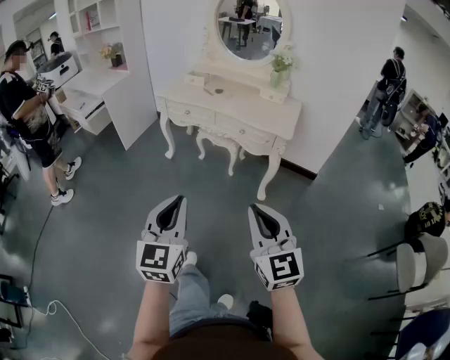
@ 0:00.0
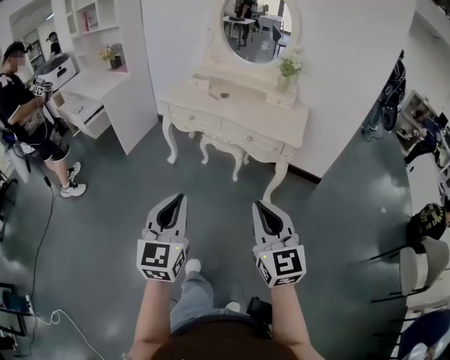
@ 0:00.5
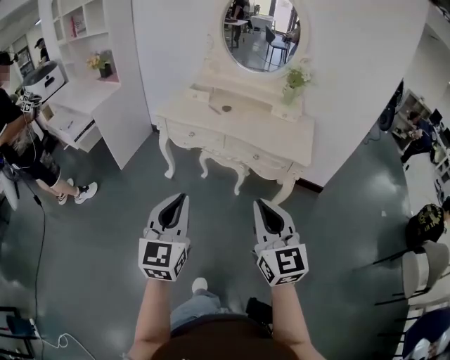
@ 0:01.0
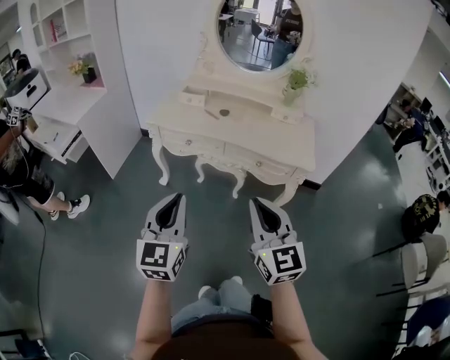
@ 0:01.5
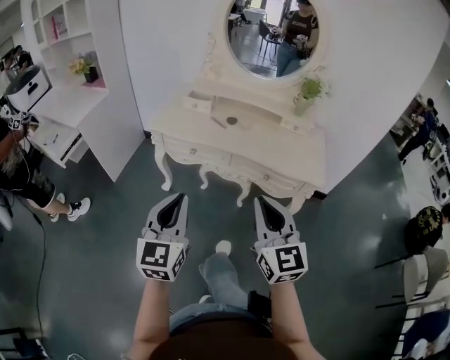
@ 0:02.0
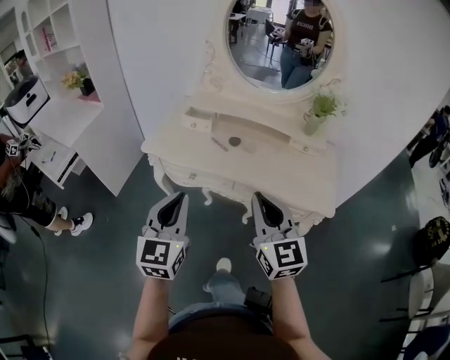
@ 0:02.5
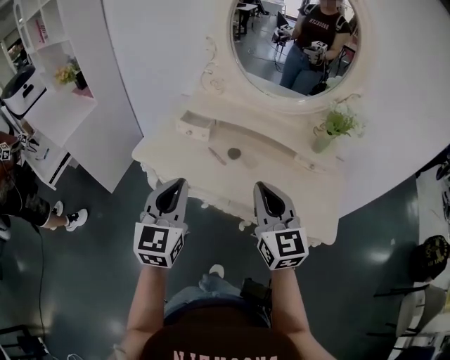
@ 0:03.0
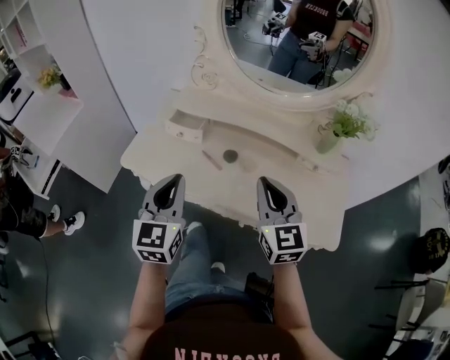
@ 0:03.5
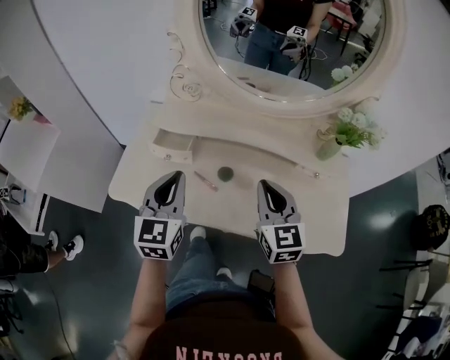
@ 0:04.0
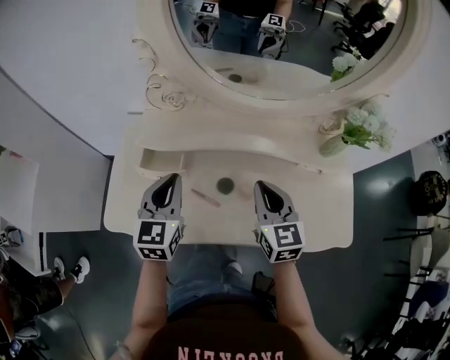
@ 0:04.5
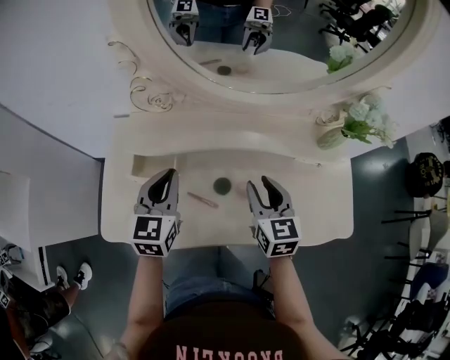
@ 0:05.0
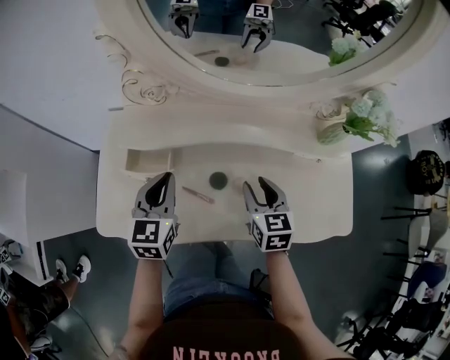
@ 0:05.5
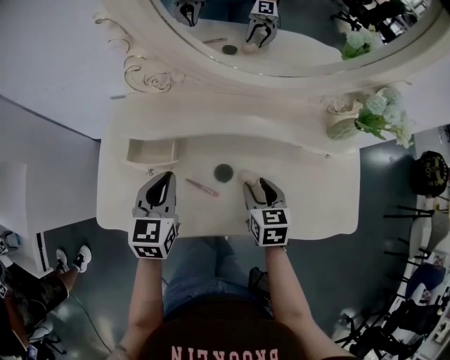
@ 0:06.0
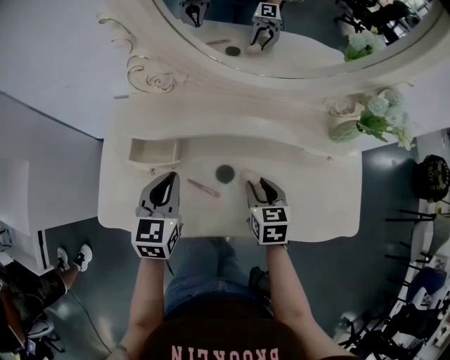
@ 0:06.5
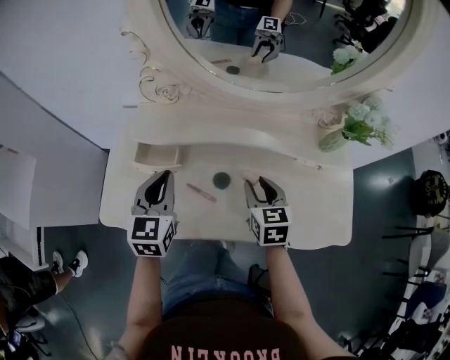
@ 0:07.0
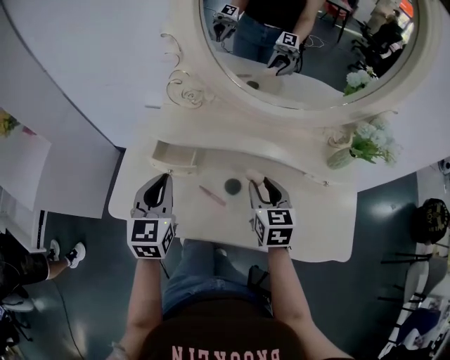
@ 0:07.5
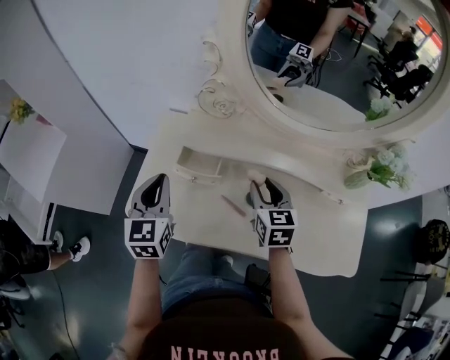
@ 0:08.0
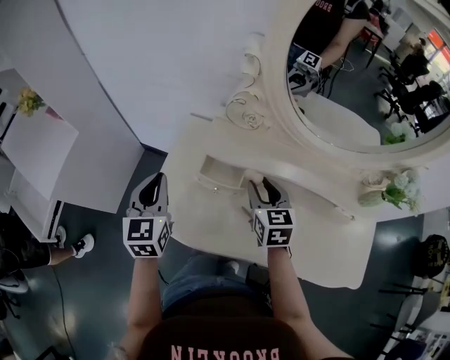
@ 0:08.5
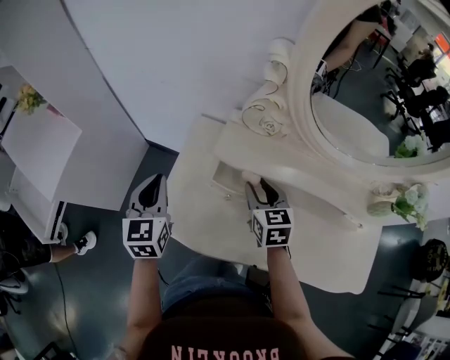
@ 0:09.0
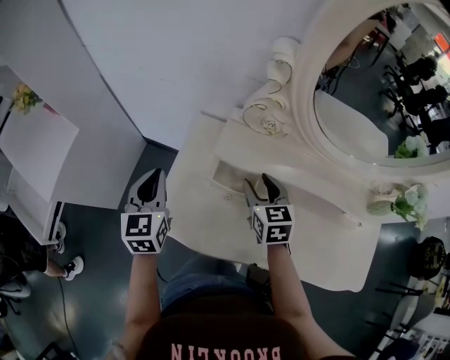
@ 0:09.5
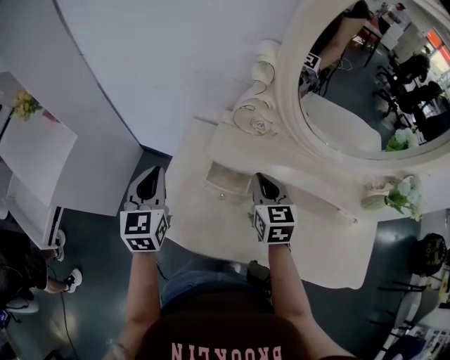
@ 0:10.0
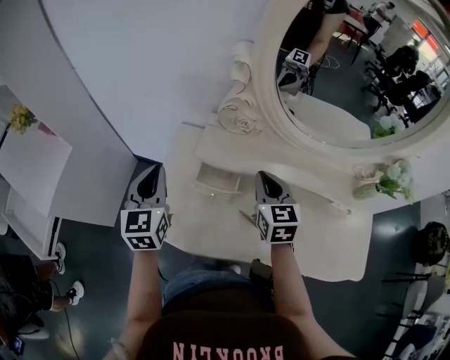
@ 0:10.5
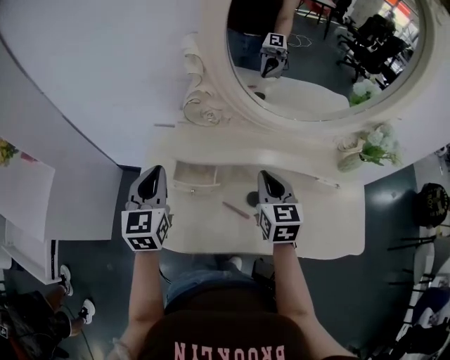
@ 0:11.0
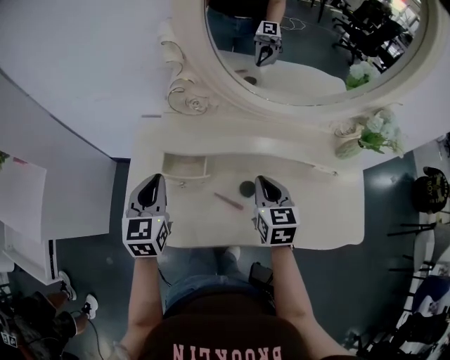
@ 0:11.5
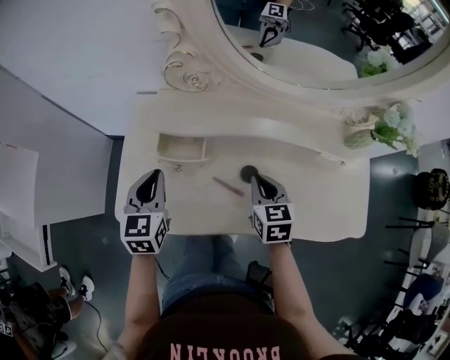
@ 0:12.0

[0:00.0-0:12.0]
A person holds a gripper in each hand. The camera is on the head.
0:00.0 to 0:02.0: The two grippers travel together, forward and to the left, some 40 cm.
0:02.0 to 0:04.0: The pair of grippers is taken forward, roughly 50 cm.
0:04.0 to 0:06.0: The right gripper is displaced downward by approximately 20 cm, swivels approximately 30 degrees, and opens up. The left gripper shifts roughly 15 cm downward and forward.
0:06.0 to 0:08.0: The right gripper travels upward, to the left and forward by approximately 15 cm. Meanwhile the left gripper is displaced to the left and upward by approximately 15 cm, and changes its angle by some 20 degrees.
0:08.0 to 0:10.0: Both grippers move to the left and forward, approximately 15 cm. The right gripper closes up.
0:10.0 to 0:12.0: The left gripper goes approximately 15 cm to the right and downward; the right gripper moves to the right, backward and downward, some 20 cm.

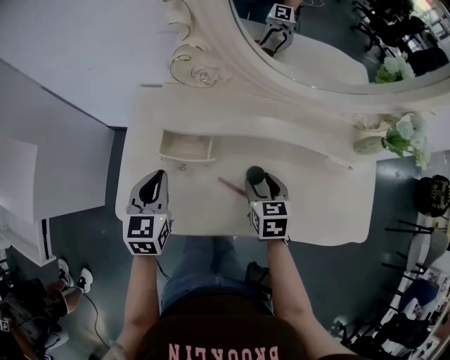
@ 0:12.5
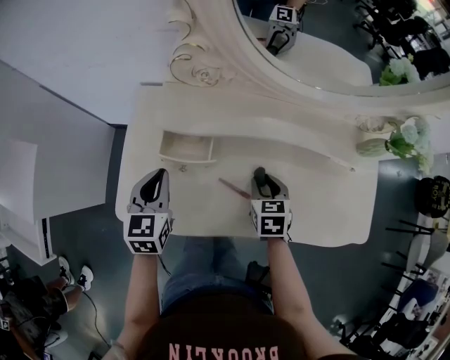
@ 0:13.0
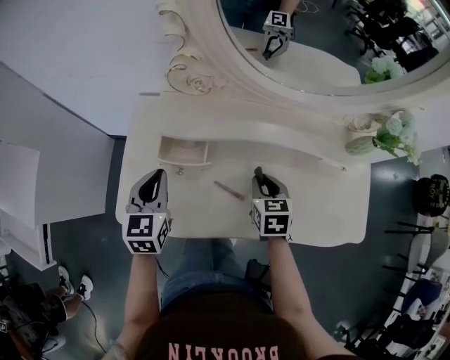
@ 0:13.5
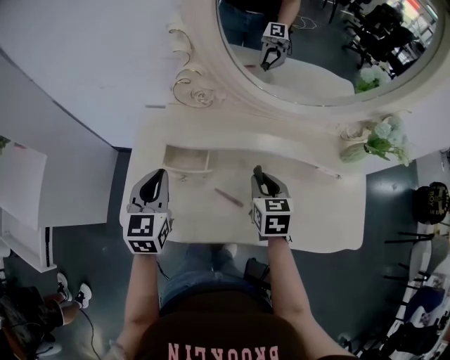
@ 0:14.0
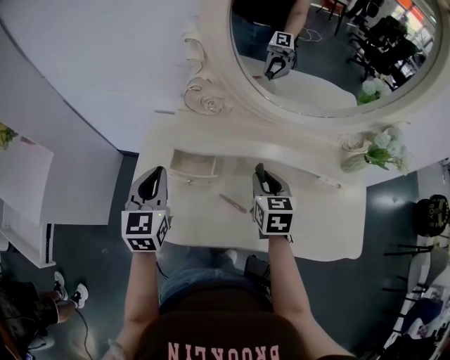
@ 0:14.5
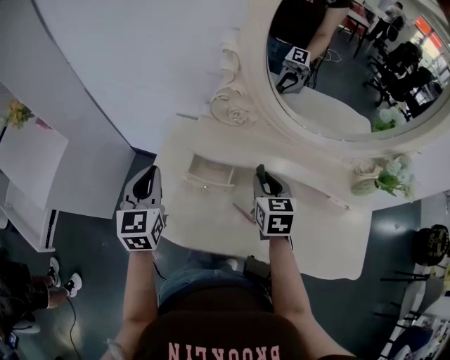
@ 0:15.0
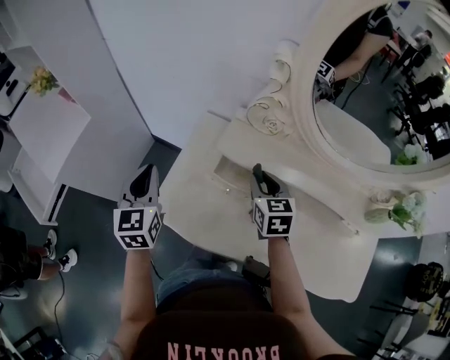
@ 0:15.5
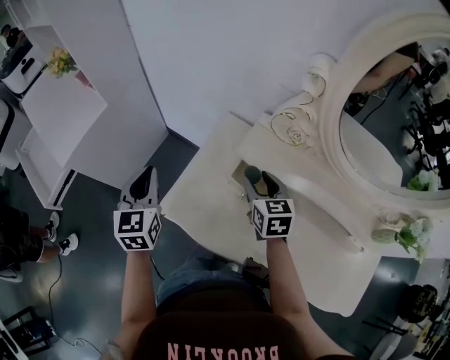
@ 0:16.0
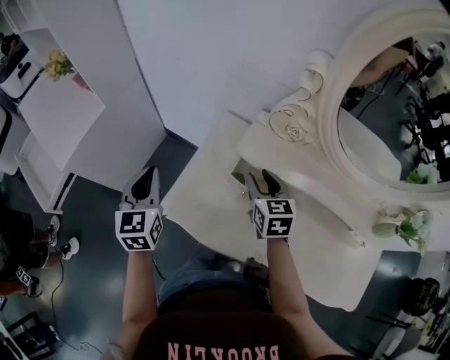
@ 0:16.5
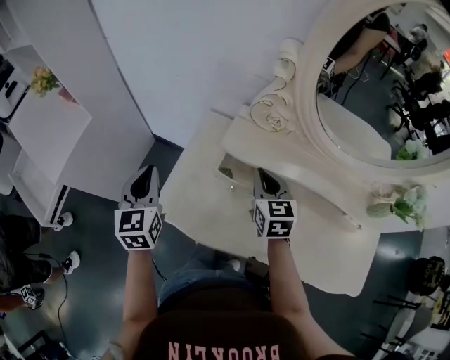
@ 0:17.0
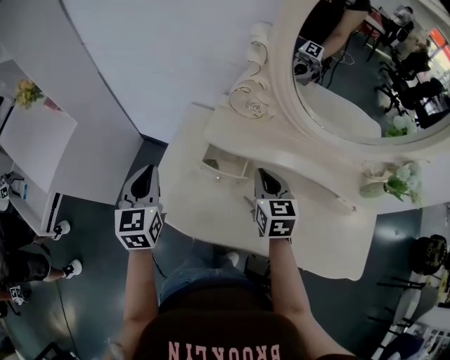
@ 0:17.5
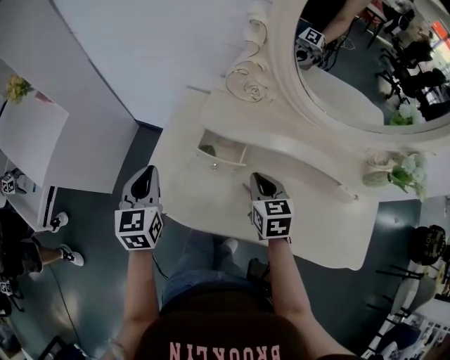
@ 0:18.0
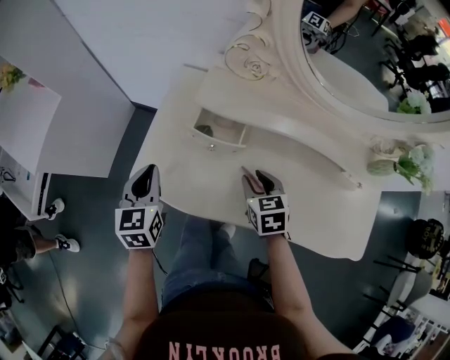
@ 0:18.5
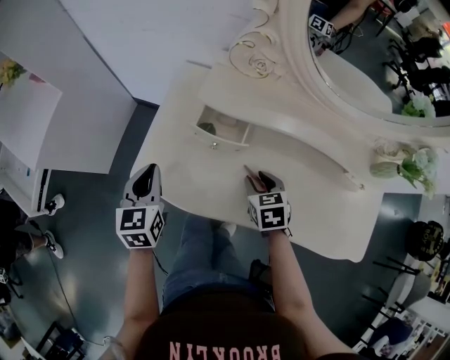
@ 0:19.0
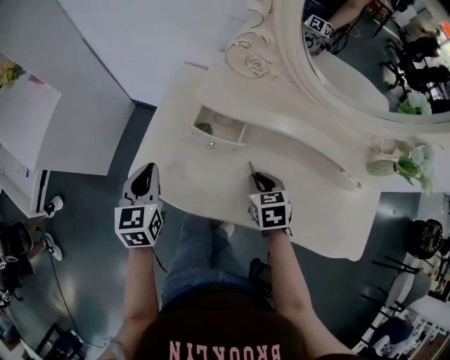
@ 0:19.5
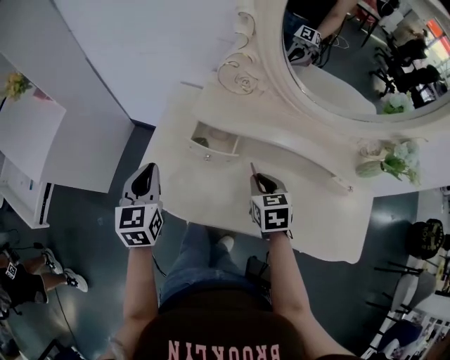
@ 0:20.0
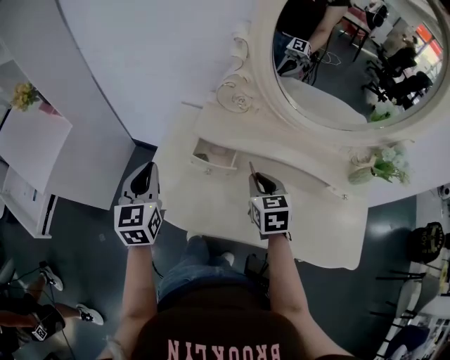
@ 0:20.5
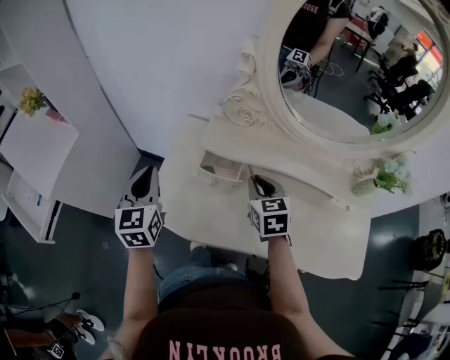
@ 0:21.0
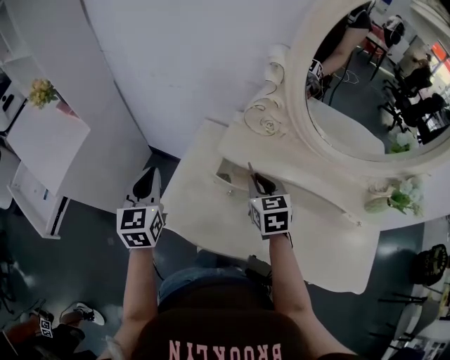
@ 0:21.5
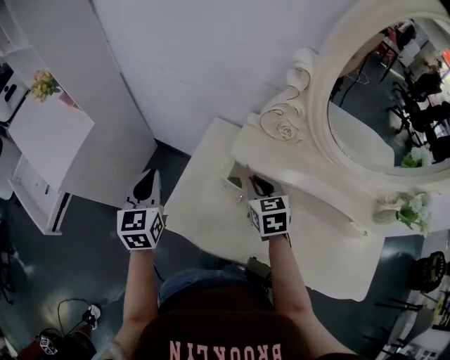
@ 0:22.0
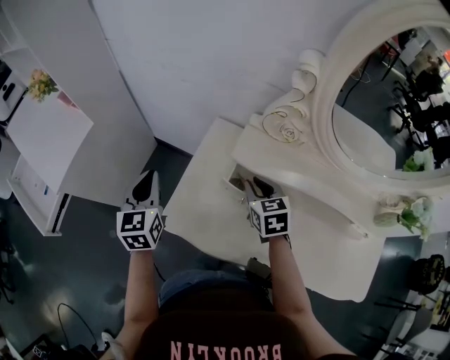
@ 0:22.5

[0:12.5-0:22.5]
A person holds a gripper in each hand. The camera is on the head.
0:12.5 to 0:14.5: Both grippers move upward, about 10 cm. The right gripper closes its fingers.
0:14.5 to 0:16.5: The left gripper moves some 20 cm, and rotates about 20 degrees, while the right gripper shifts by some 20 cm, and swivels roughly 20 degrees.
0:16.5 to 0:18.5: The right gripper heads backward, downward and to the right, covering roughly 20 cm, and closes and opens again, while the left gripper moves to the right, downward and backward, about 15 cm.
0:18.5 to 0:20.5: The grippers both shift upward by about 10 cm. The right gripper closes its fingers.
0:20.5 to 0:22.5: Both grippers travel together to the left and forward, approximately 15 cm.

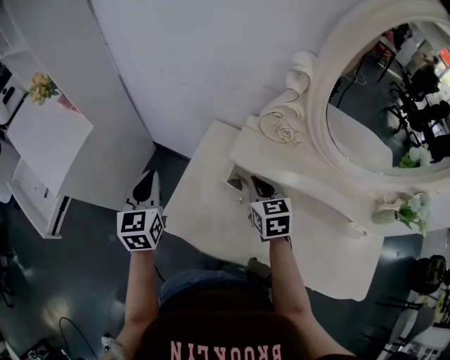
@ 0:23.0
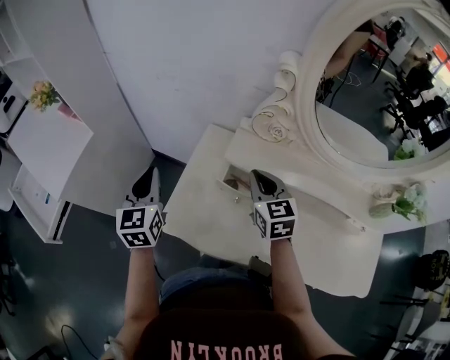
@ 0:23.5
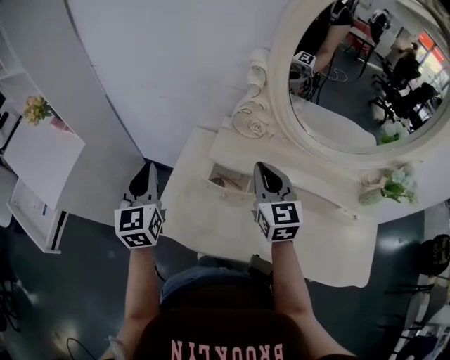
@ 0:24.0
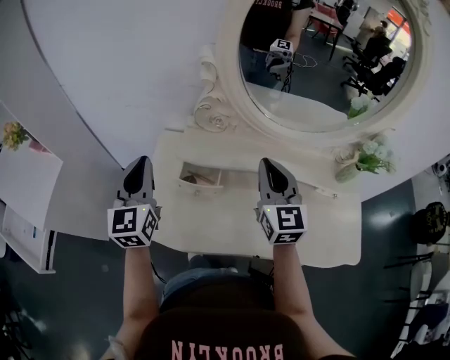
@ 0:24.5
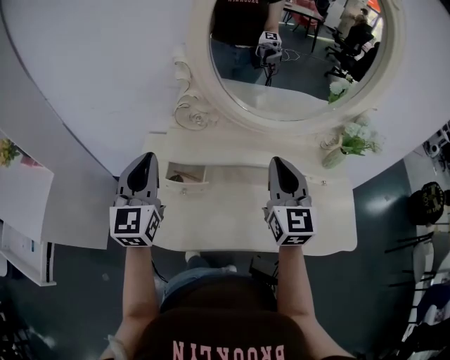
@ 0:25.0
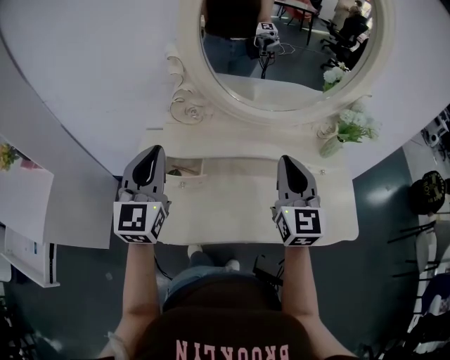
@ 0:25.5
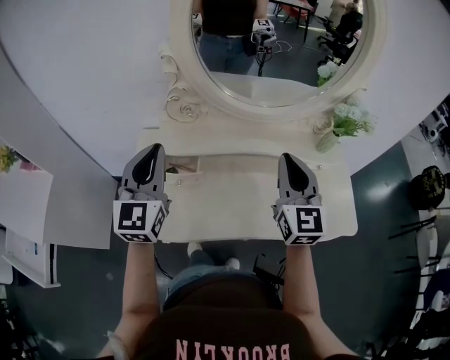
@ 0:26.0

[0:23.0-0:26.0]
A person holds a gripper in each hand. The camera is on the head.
0:23.0 to 0:24.5: The left gripper moves to the right and upward, some 20 cm, and changes its angle by about 20 degrees. The right gripper heads upward, to the right and backward, covering roughly 25 cm, and tilts its fingers about 30 degrees upward.
0:24.5 to 0:26.0: The left gripper heads to the right, covering some 10 cm. The right gripper shifts about 15 cm to the right and backward.

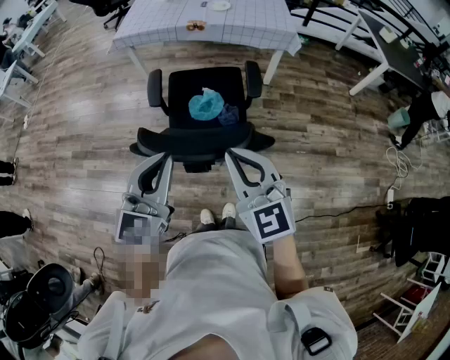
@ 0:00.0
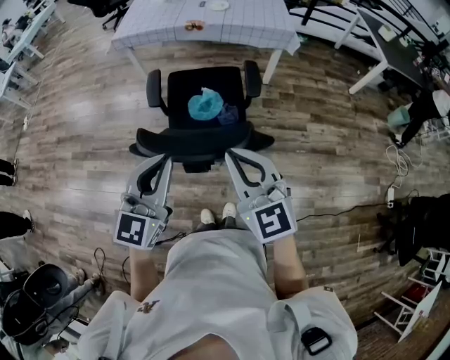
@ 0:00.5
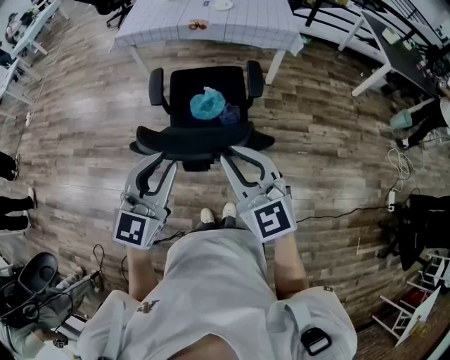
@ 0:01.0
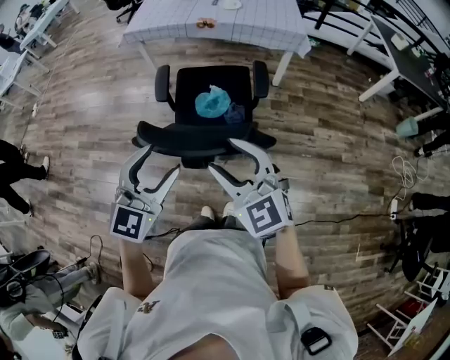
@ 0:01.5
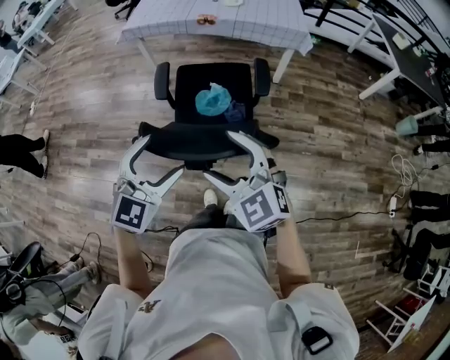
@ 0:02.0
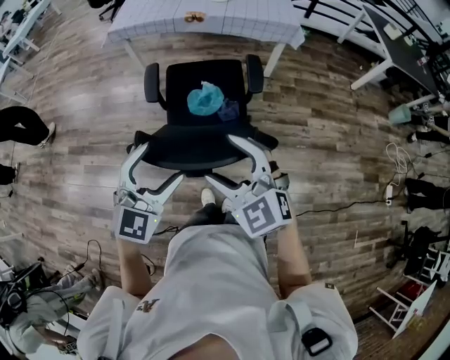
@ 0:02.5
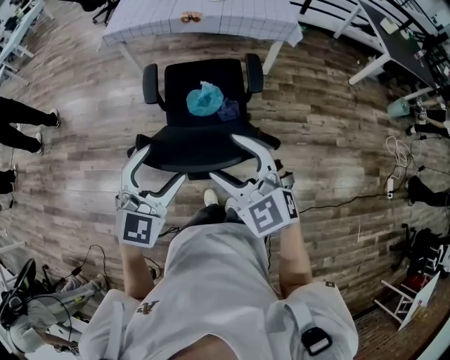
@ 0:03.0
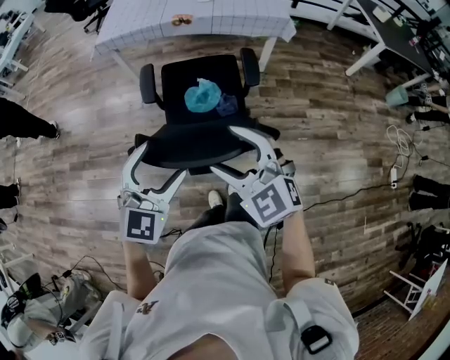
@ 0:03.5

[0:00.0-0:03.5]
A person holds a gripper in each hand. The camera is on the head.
0:00.0 to 0:02.0: The left gripper changes its angle by approximately 20 degrees, and opens; the right gripper shifts by about 5 cm, turns by approximately 20 degrees, and opens up.
0:02.0 to 0:03.5: Both grippers move forward, roughly 5 cm.
